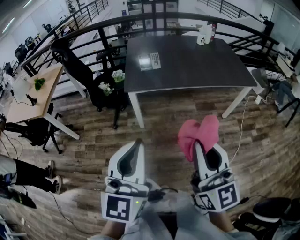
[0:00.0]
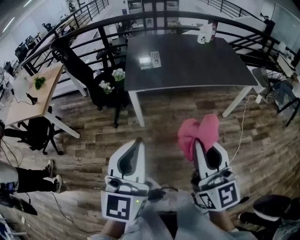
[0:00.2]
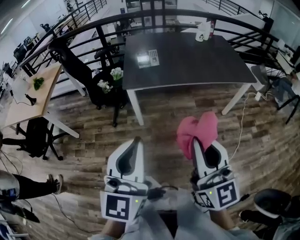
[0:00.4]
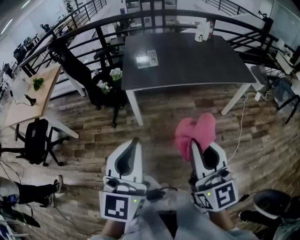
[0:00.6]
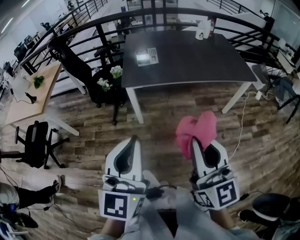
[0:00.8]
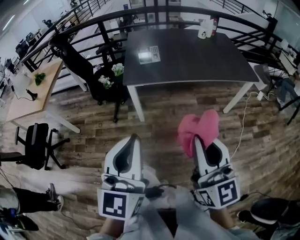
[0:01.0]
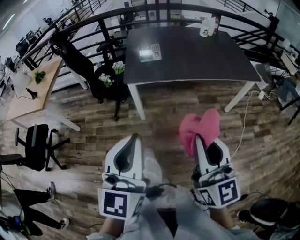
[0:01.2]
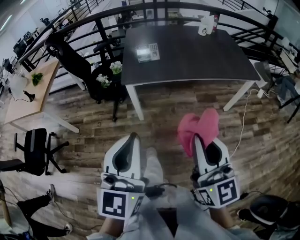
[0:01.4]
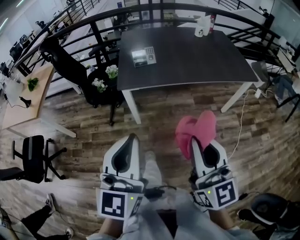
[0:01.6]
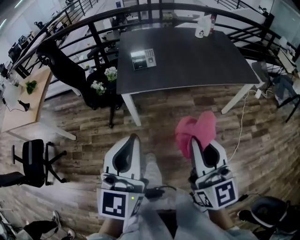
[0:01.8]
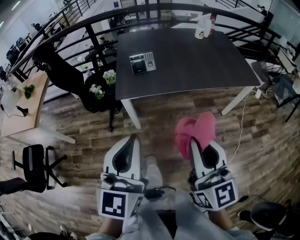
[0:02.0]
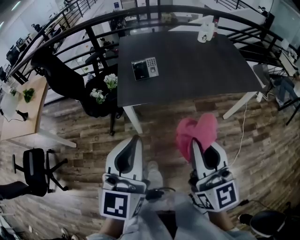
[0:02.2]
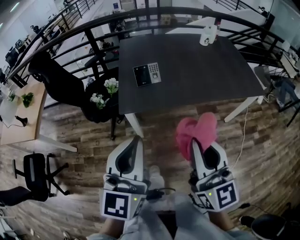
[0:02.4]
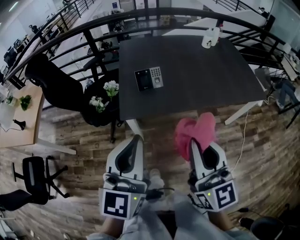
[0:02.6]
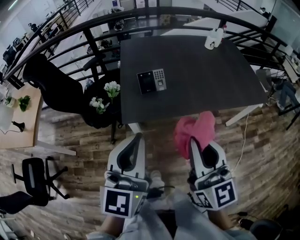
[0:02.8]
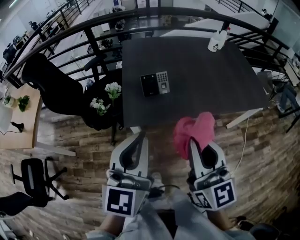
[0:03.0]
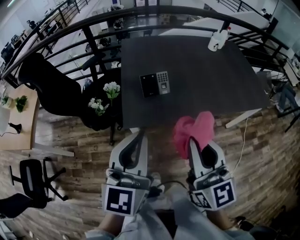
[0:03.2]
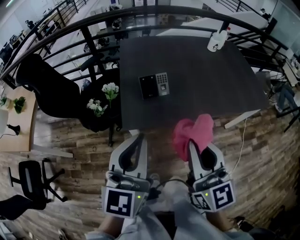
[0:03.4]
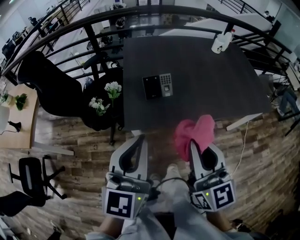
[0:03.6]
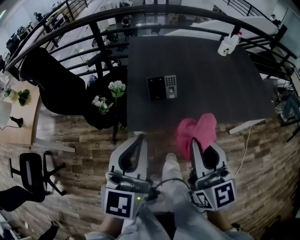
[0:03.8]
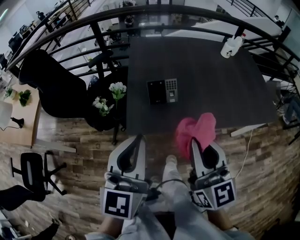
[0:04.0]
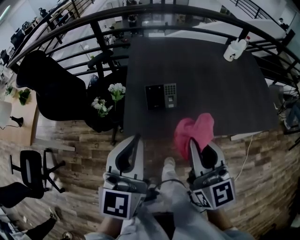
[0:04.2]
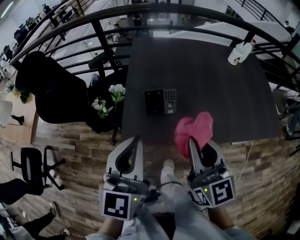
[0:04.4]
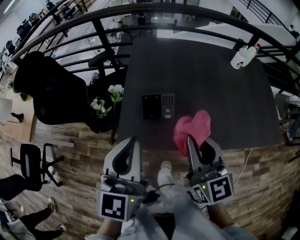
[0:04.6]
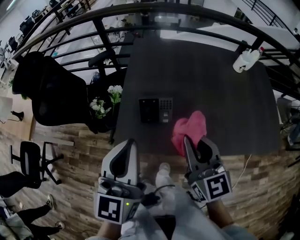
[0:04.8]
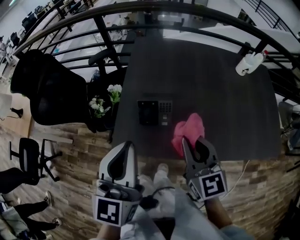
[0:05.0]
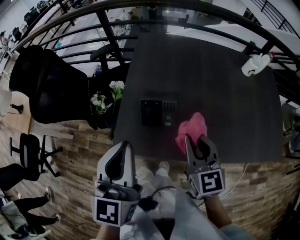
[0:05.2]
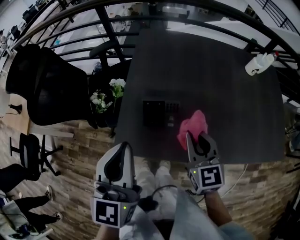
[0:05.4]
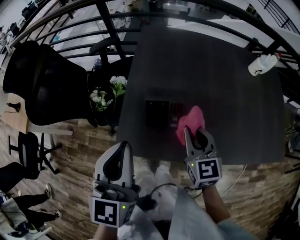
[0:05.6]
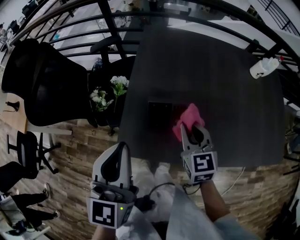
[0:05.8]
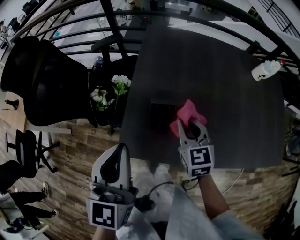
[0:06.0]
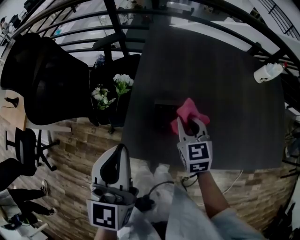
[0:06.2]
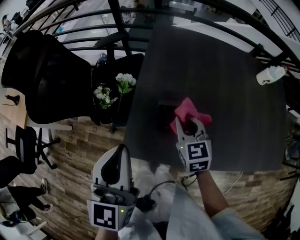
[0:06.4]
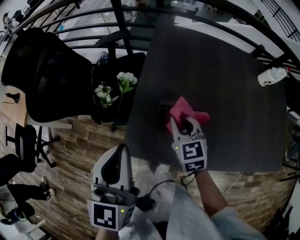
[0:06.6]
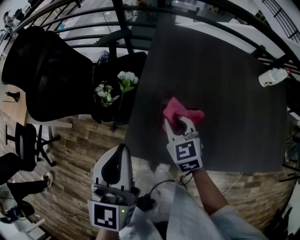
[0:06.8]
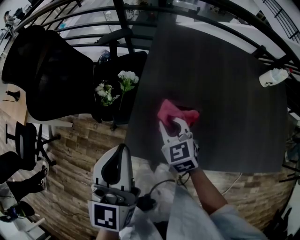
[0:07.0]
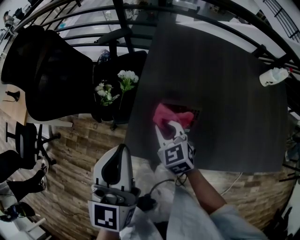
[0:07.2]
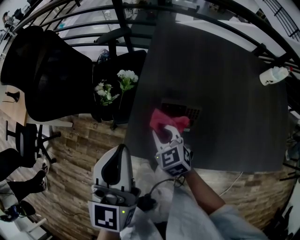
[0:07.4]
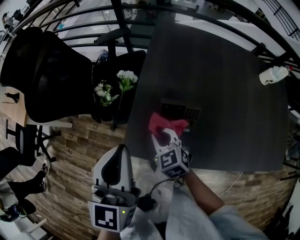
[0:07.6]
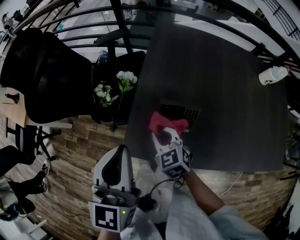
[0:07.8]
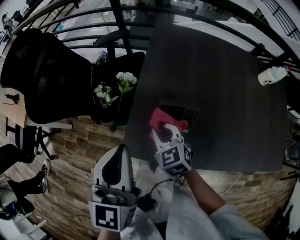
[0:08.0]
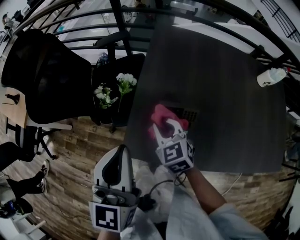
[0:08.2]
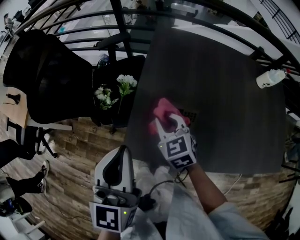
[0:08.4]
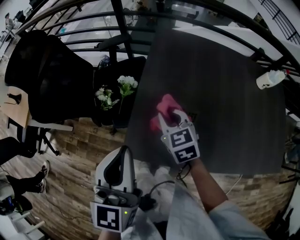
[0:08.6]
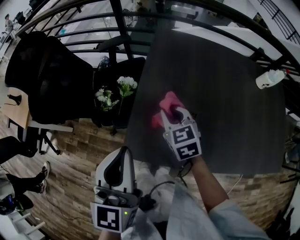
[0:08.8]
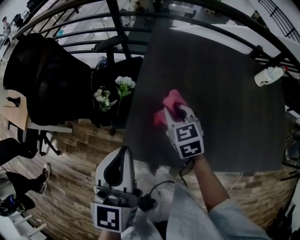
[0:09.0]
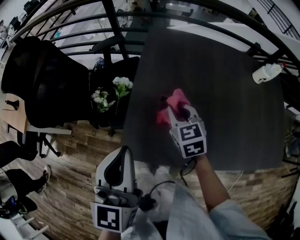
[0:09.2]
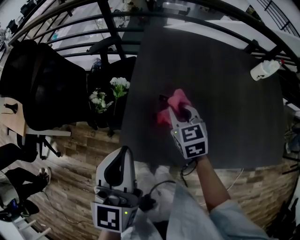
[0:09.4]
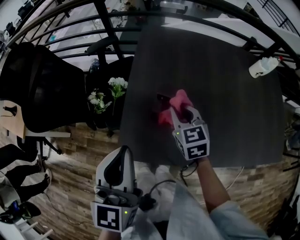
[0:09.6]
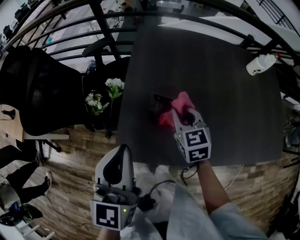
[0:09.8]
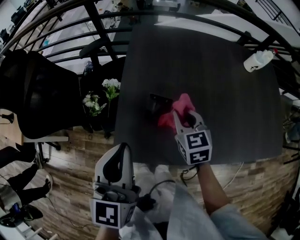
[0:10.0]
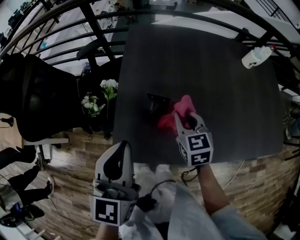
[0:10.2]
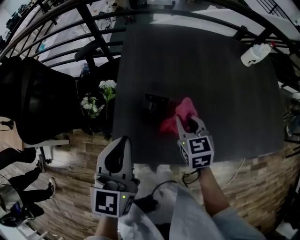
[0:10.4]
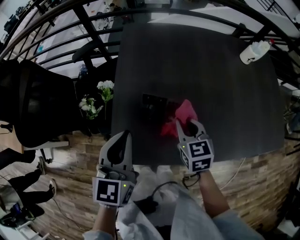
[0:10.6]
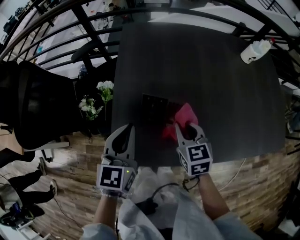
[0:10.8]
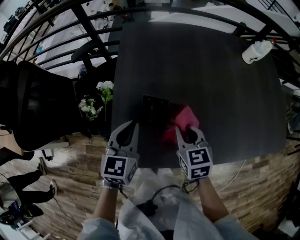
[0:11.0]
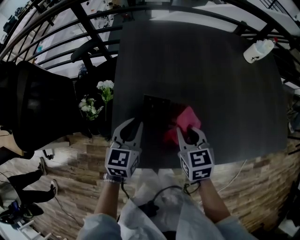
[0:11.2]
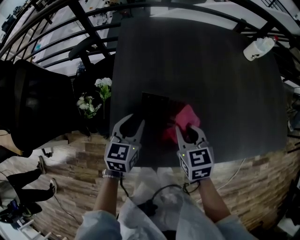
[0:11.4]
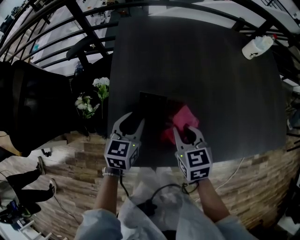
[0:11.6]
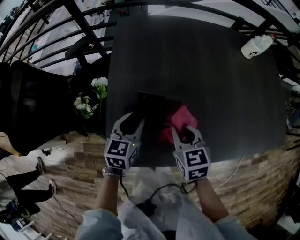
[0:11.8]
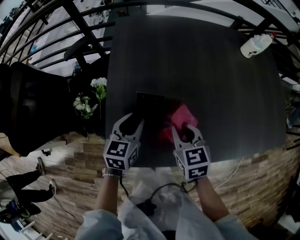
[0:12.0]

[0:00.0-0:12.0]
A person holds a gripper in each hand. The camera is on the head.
0:00.0 to 0:01.6: Both grippers move forward, approximately 5 cm.
0:01.6 to 0:03.0: The two grippers go approximately 25 cm forward.
0:03.0 to 0:04.4: Both grippers travel together forward, about 15 cm.
0:04.4 to 0:06.0: The right gripper moves forward and downward, approximately 25 cm, and rotates some 30 degrees, while the left gripper heads forward, covering some 10 cm.
0:06.0 to 0:07.6: The right gripper shifts roughly 15 cm to the left and downward, and swivels roughly 30 degrees.
0:07.6 to 0:09.0: The right gripper goes approximately 15 cm forward, to the right and upward.
0:09.0 to 0:10.4: The left gripper moves approximately 10 cm; the right gripper goes some 10 cm to the right and backward.
0:10.4 to 0:12.0: The left gripper shifts approximately 20 cm downward and forward, changes its angle by roughly 20 degrees, and opens.

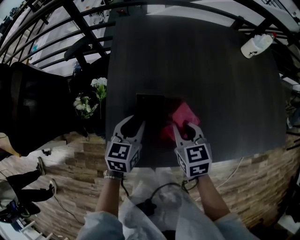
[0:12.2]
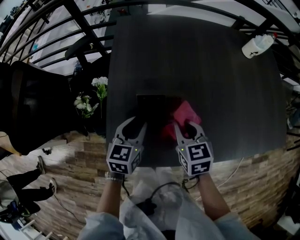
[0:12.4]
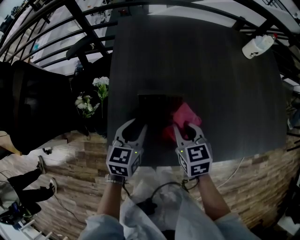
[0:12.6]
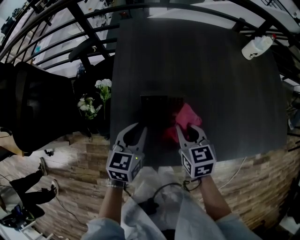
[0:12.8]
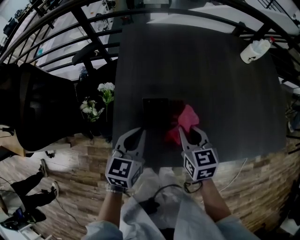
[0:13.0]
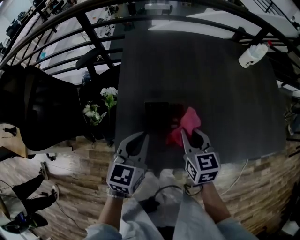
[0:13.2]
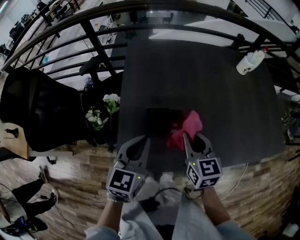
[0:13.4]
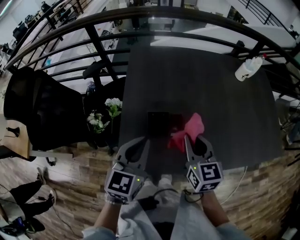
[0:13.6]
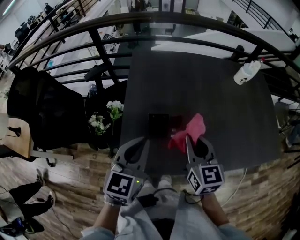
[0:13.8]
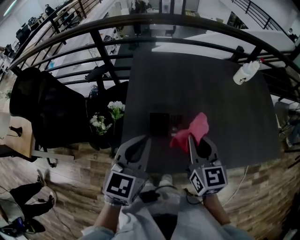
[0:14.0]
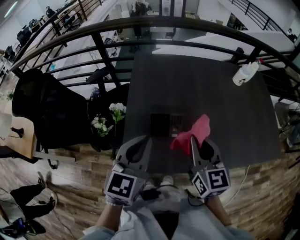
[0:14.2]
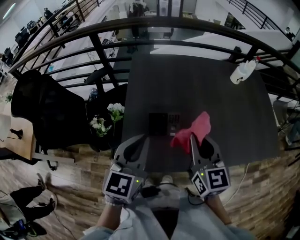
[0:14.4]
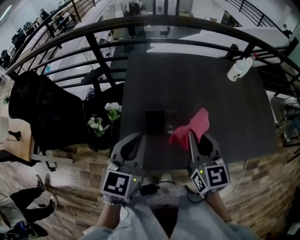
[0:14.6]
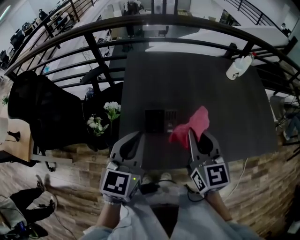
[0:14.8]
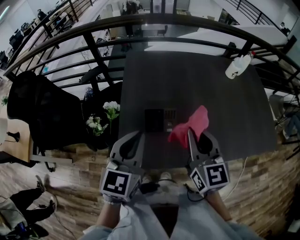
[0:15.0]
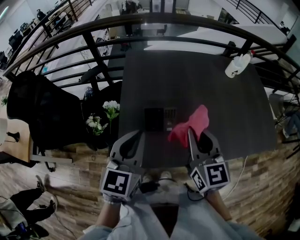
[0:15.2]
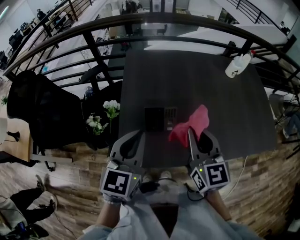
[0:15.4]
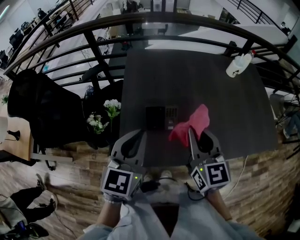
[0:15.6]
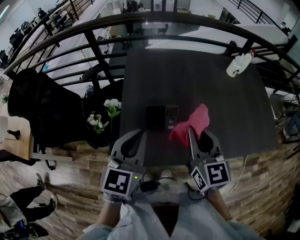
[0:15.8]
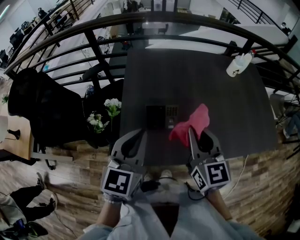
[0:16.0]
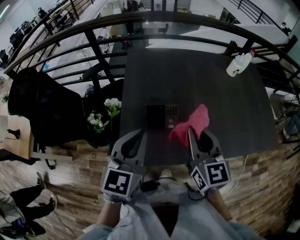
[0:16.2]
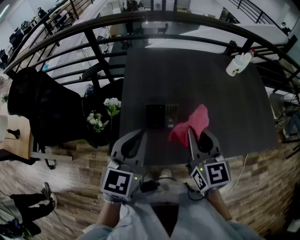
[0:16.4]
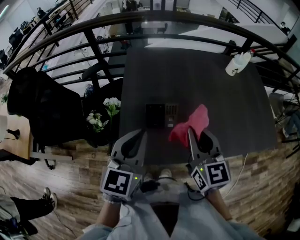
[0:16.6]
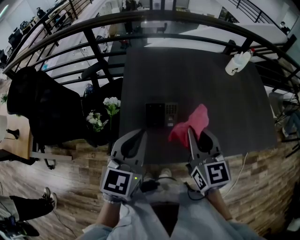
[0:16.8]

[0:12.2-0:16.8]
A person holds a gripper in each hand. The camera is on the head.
0:12.2 to 0:13.8: The grippers both shift upward by about 15 cm. The left gripper closes up. The right gripper turns by about 20 degrees.
0:13.8 to 0:15.2: The right gripper shifts about 5 cm upward.
0:15.2 to 0:16.8: The grippers move only a little.

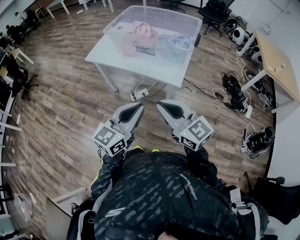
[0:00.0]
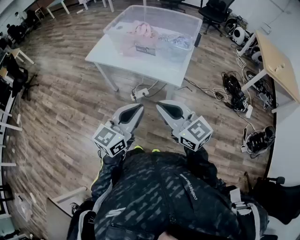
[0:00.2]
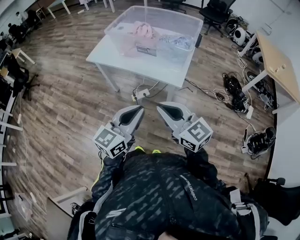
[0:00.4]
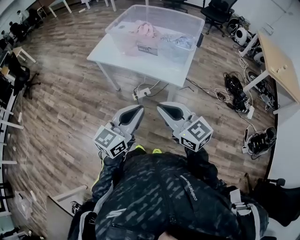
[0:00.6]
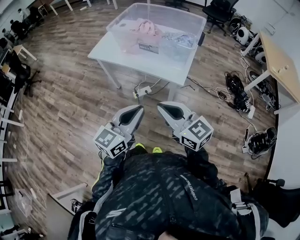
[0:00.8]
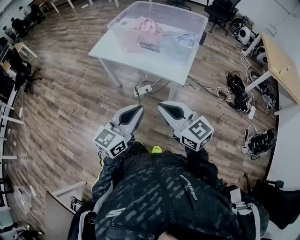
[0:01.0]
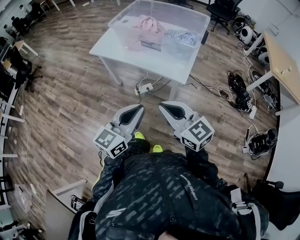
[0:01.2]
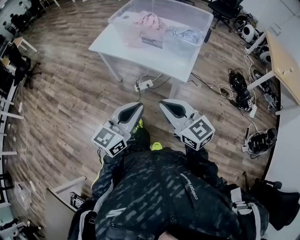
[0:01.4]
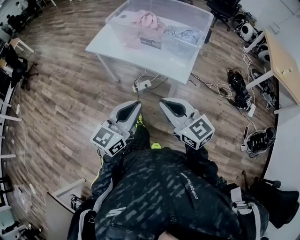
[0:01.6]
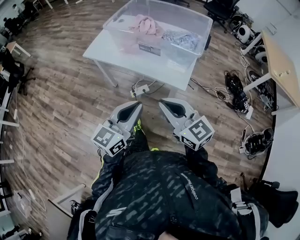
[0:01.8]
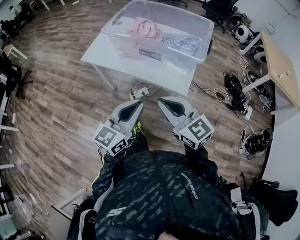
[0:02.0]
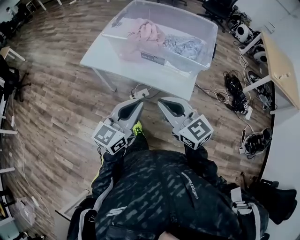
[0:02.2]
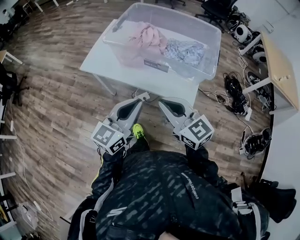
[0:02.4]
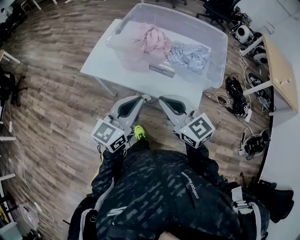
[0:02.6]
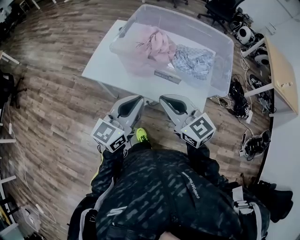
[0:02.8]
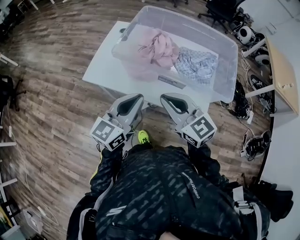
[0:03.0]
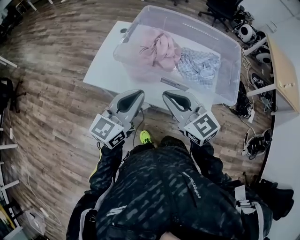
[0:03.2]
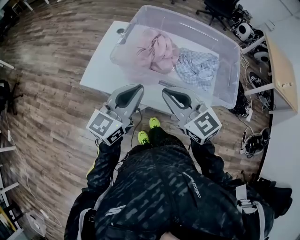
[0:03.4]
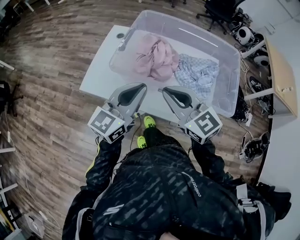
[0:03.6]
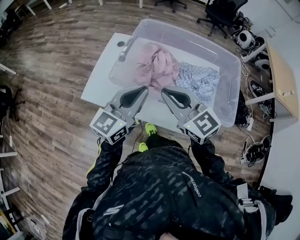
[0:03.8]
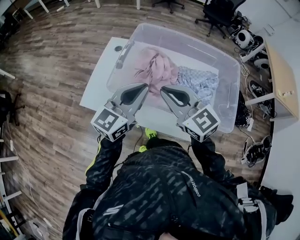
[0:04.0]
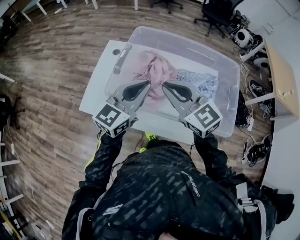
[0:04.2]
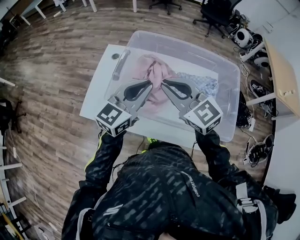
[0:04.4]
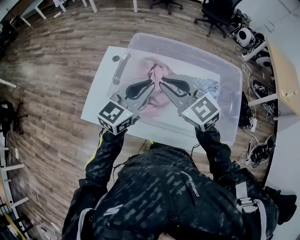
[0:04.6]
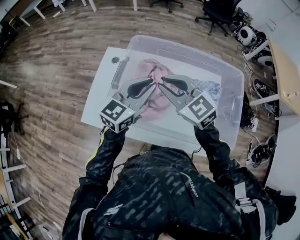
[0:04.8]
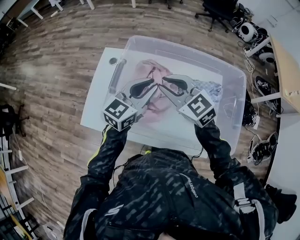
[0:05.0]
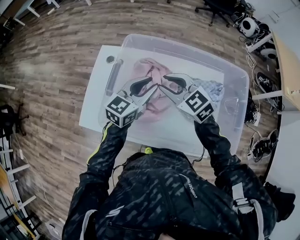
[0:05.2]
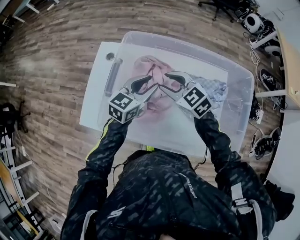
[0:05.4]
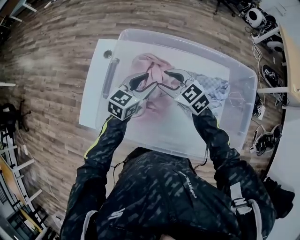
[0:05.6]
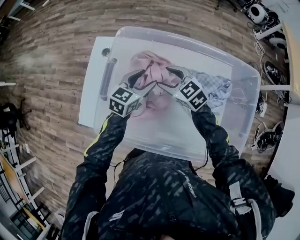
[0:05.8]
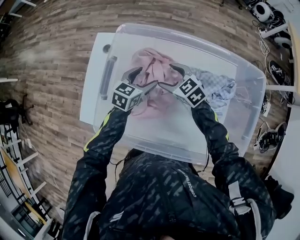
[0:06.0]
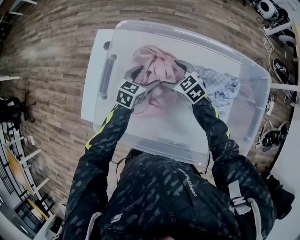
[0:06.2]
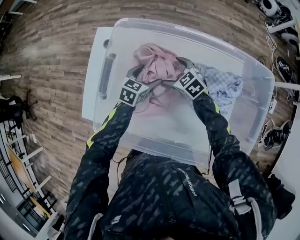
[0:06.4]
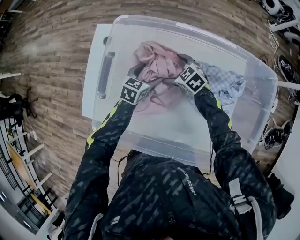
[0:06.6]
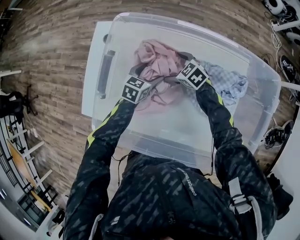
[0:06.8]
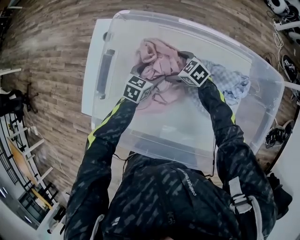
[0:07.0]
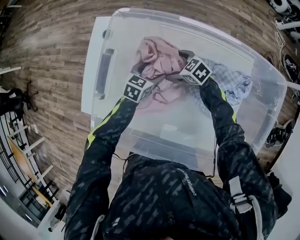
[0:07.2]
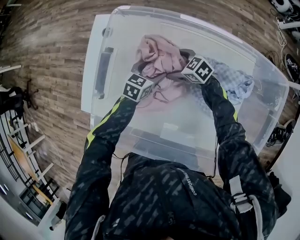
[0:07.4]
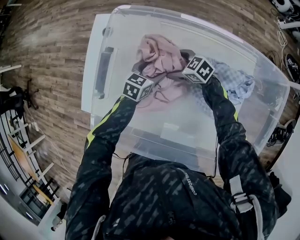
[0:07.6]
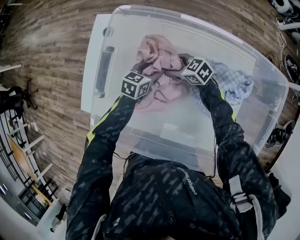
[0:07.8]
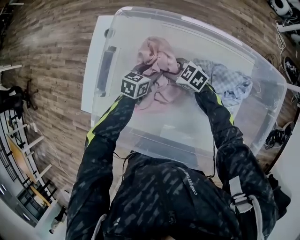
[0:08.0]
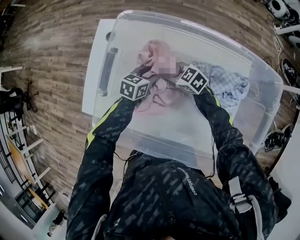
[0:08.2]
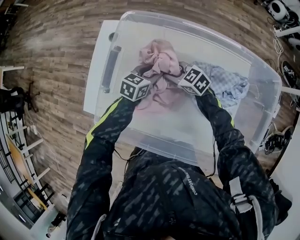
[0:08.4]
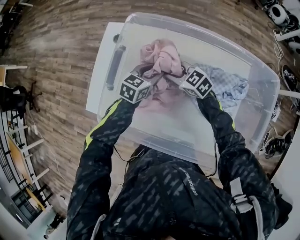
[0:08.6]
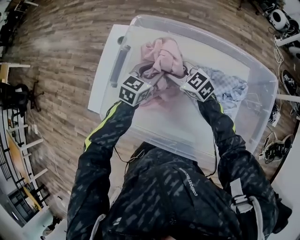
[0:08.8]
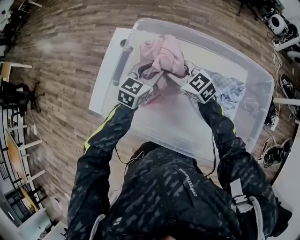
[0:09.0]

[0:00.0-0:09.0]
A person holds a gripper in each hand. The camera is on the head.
0:00.0 to 0:01.6: The right gripper shifts by roughly 5 cm.
0:01.6 to 0:03.0: The left gripper travels forward by about 35 cm, while the right gripper moves forward and to the left, about 35 cm.
0:03.0 to 0:04.4: The grippers both shift forward by approximately 25 cm.
0:04.4 to 0:06.0: The grippers both shift downward and forward by approximately 30 cm. The left gripper angles its fingers downward, by about 30 degrees, and opens its fingers. Meanwhile the right gripper turns by approximately 30 degrees, and opens up.
0:06.0 to 0:07.6: The grippers both shift downward by roughly 10 cm. The right gripper swivels about 20 degrees.
0:07.6 to 0:09.0: Both grippers move upward, approximately 20 cm. The right gripper turns by about 30 degrees, and closes its fingers. The left gripper turns by some 20 degrees, and closes up.
